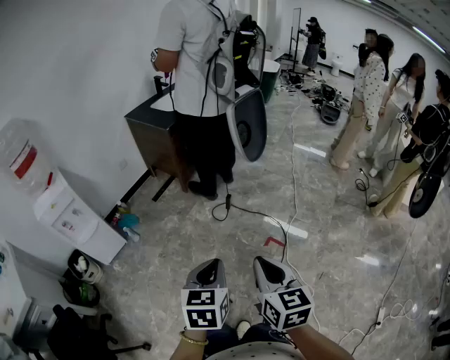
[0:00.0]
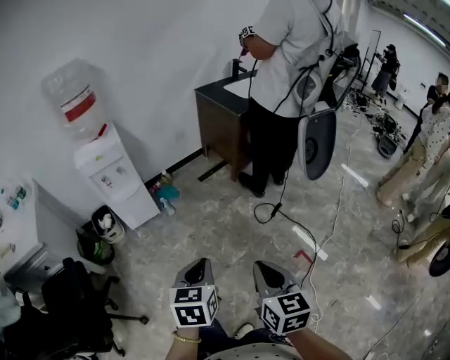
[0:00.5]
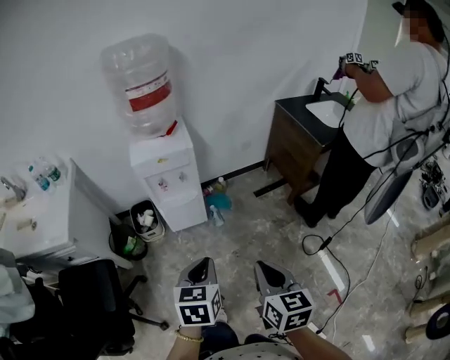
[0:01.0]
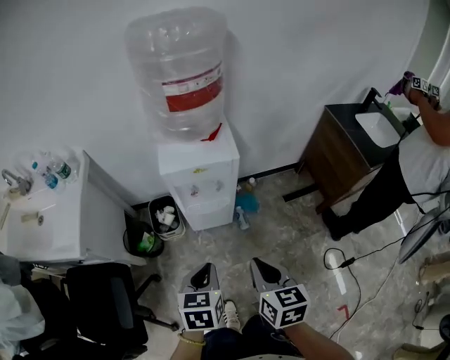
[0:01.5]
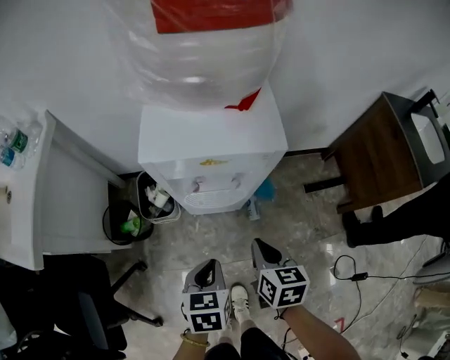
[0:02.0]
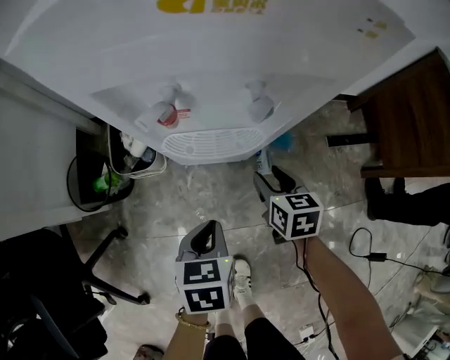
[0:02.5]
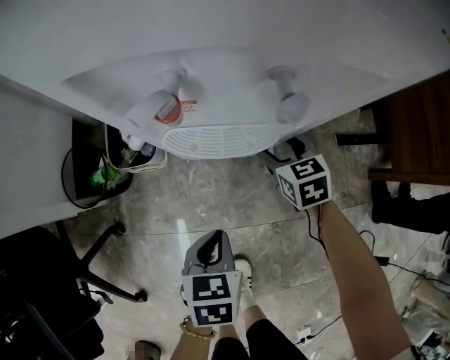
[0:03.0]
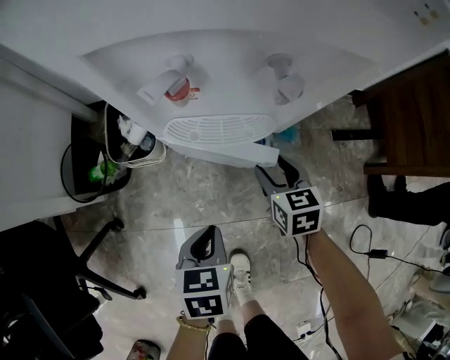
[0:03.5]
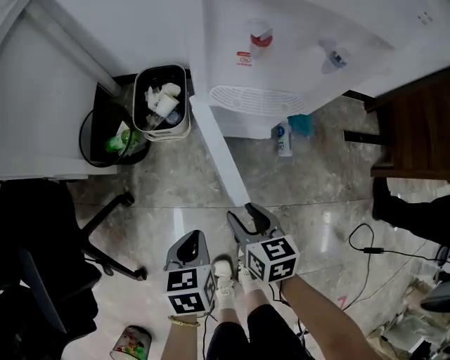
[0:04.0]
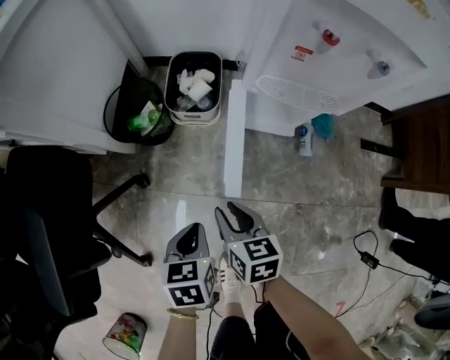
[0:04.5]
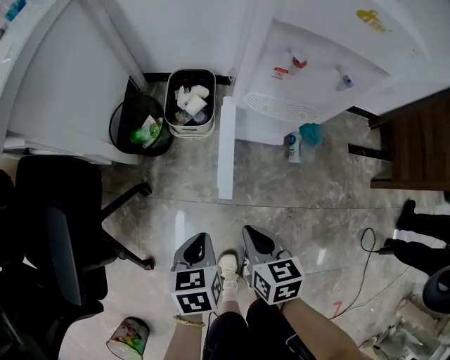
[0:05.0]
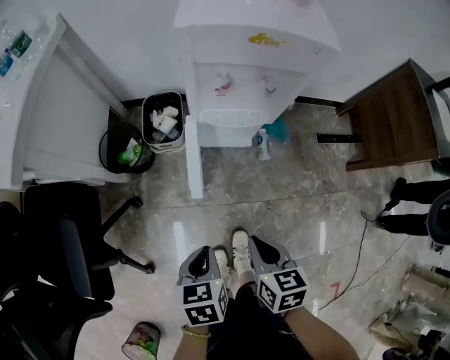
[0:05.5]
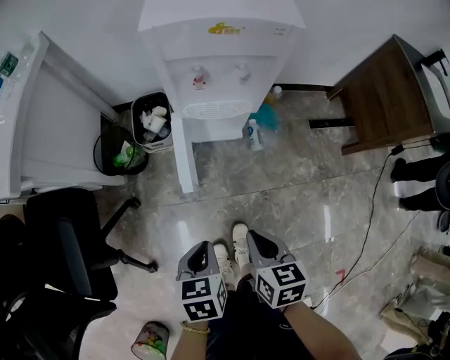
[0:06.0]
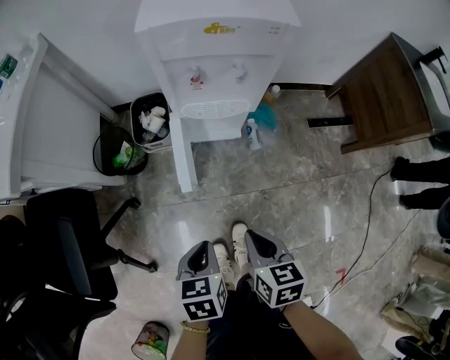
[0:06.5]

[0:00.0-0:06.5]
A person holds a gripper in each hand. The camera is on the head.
0:00.0 to 0:02.0: The pair of grippers is taken some 80 cm. The right gripper rotates about 50 degrees. Meanwhile the left gripper rotates roughly 60 degrees.
0:02.0 to 0:04.5: Both grippers travel together downward, to the left and backward, roughly 35 cm. The right gripper rotates about 20 degrees, and opens.
0:04.5 to 0:06.5: The grippers both shift upward, to the right and backward by roughly 25 cm. The right gripper closes.

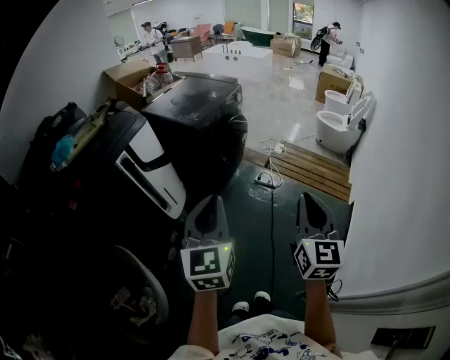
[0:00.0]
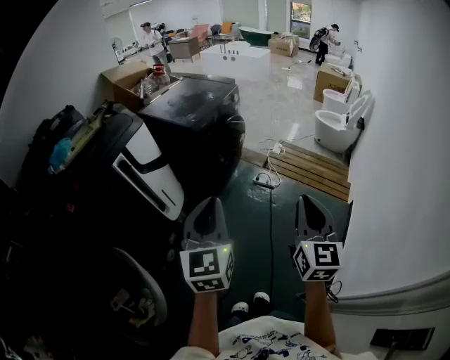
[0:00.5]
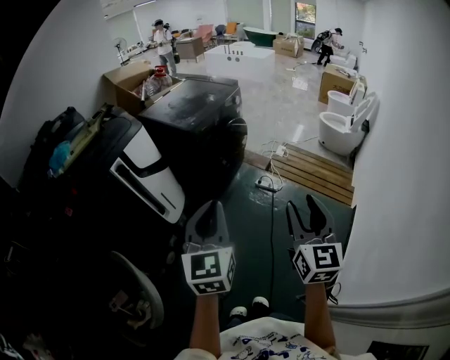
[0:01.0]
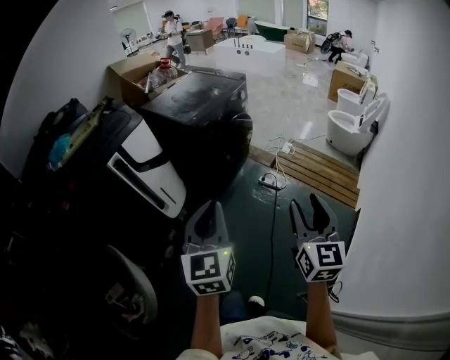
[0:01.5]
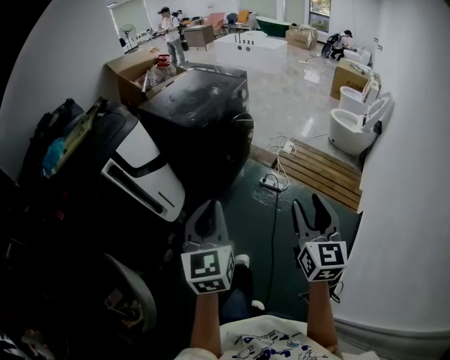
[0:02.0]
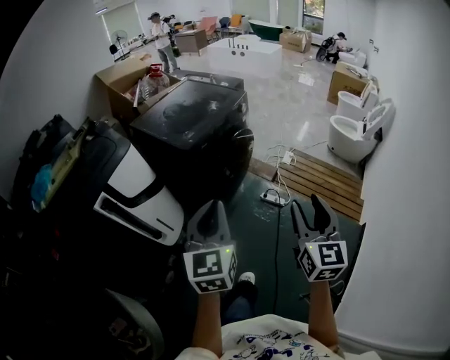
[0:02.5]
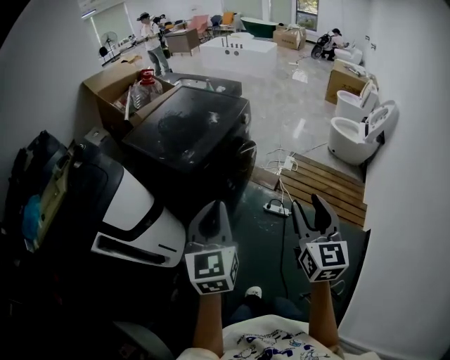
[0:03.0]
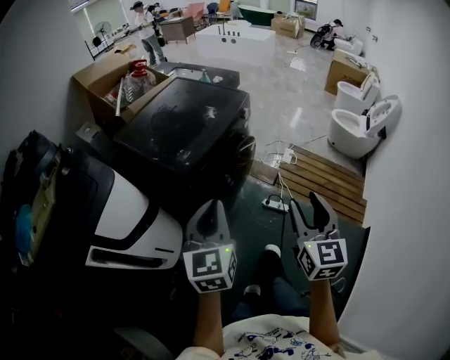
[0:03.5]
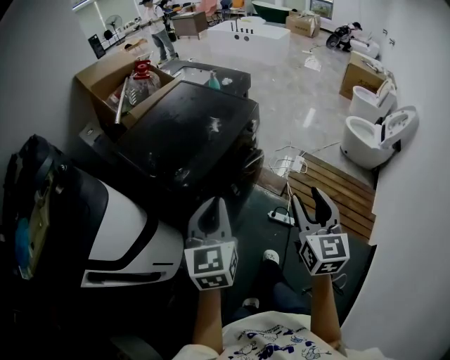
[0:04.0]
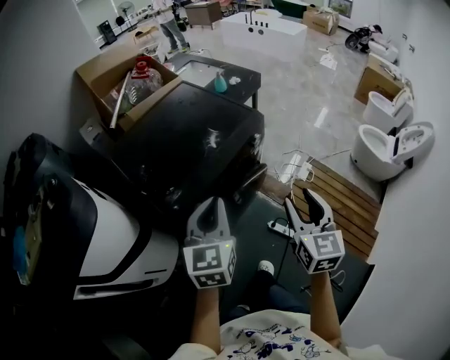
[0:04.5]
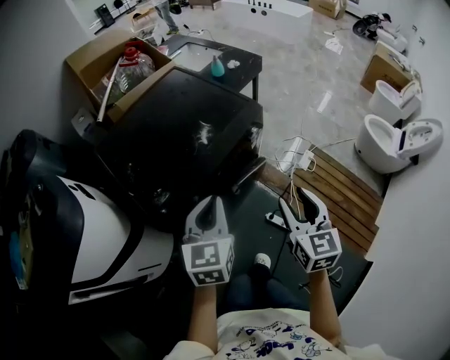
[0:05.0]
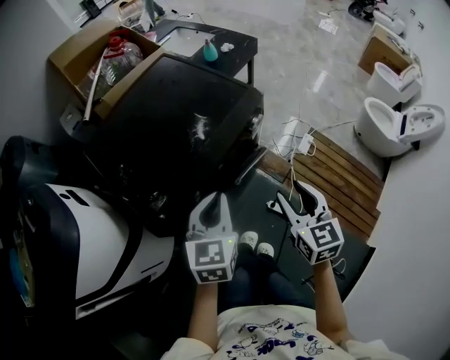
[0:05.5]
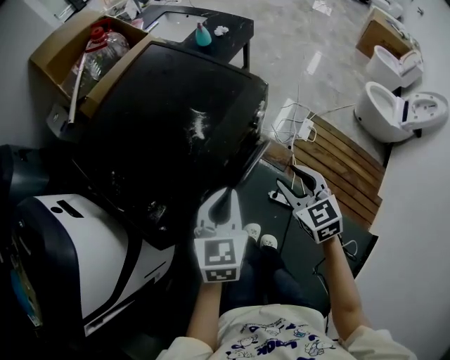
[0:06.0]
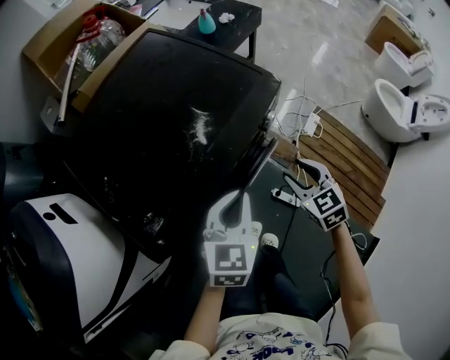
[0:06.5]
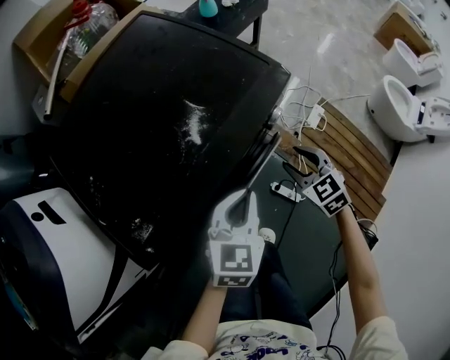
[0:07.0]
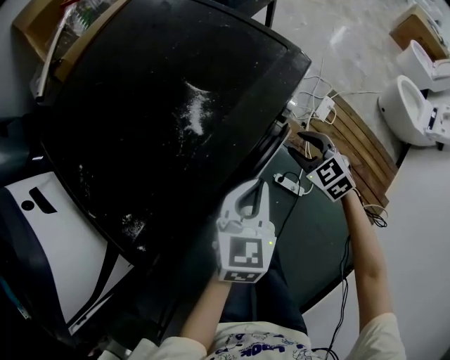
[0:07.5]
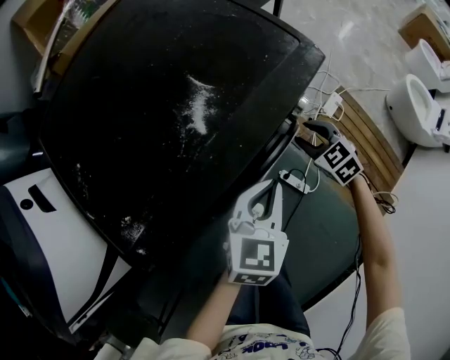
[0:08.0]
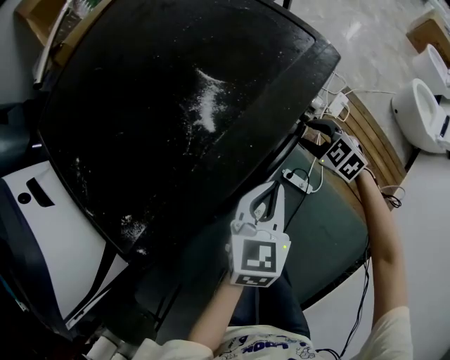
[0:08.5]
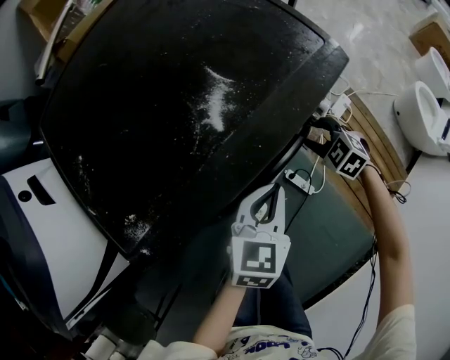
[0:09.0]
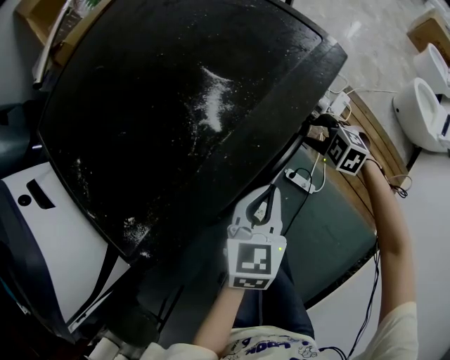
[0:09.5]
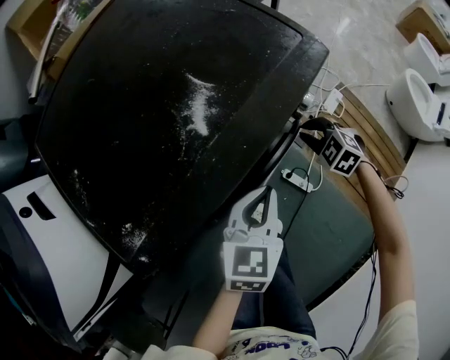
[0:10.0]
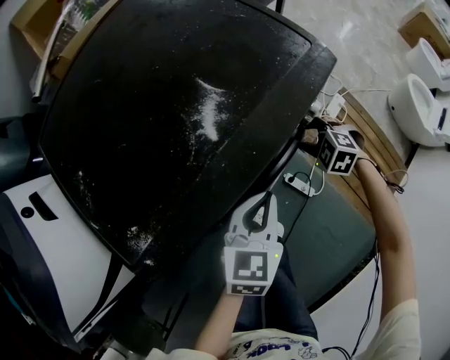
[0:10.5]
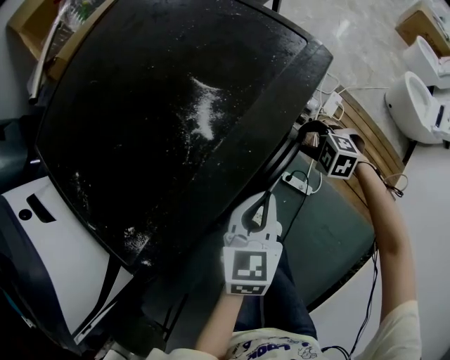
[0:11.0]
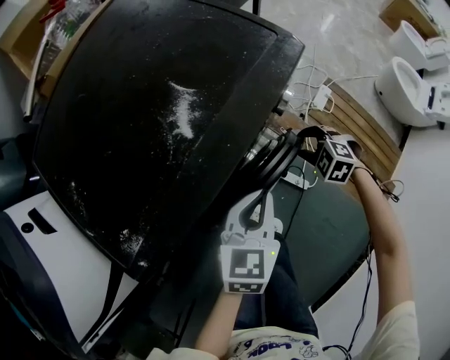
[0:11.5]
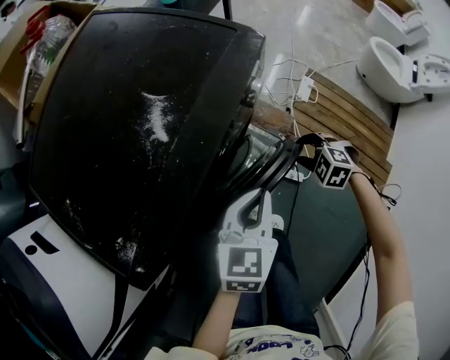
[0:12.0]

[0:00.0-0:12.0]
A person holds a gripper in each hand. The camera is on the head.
0:00.0 to 0:02.0: The right gripper heads forward and to the right, covering roughly 15 cm, and opens its fingers. Meanwhile the left gripper moves forward, approximately 10 cm.
0:02.0 to 0:04.0: The pair of grippers is taken forward, some 50 cm.
0:04.0 to 0:06.0: The two grippers go roughly 30 cm forward and downward. The right gripper rotates some 30 degrees.
0:06.0 to 0:08.0: The right gripper travels downward and forward by roughly 25 cm, and rotates roughly 30 degrees, while the left gripper goes some 15 cm downward and to the right.
0:08.0 to 0:10.0: The right gripper turns by some 20 degrees, and closes.
0:10.0 to 0:12.0: The right gripper goes some 10 cm backward, and opens its fingers.

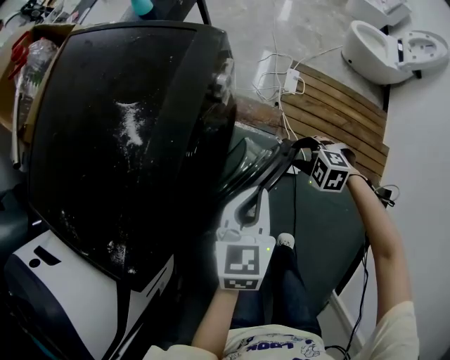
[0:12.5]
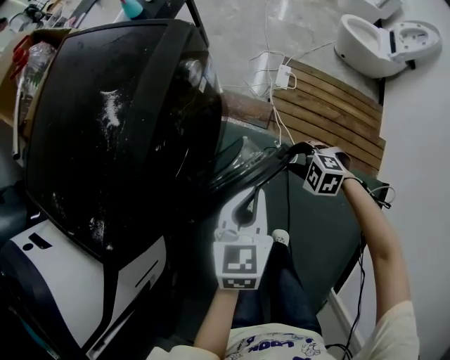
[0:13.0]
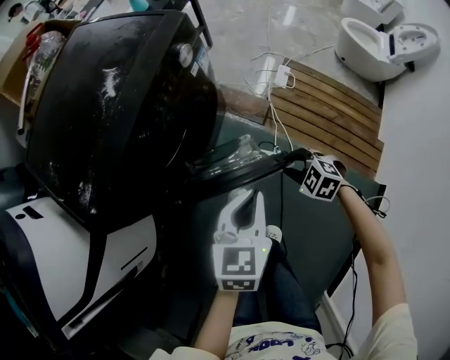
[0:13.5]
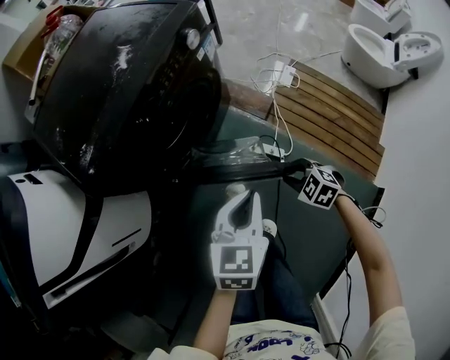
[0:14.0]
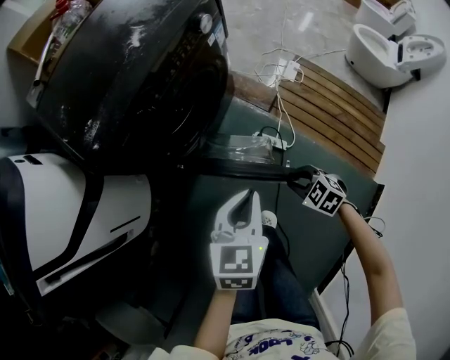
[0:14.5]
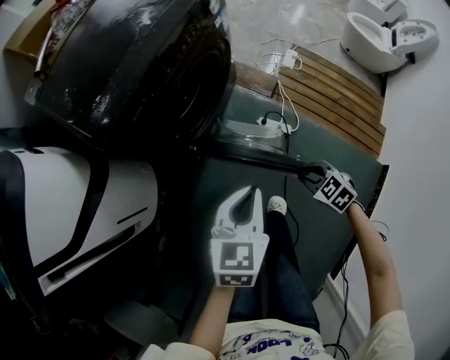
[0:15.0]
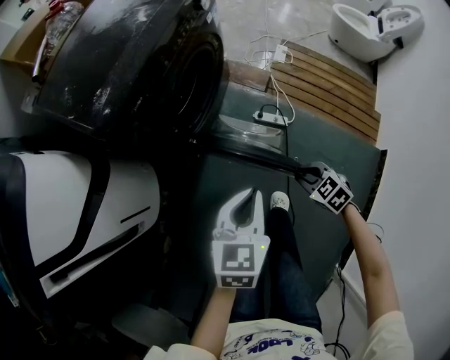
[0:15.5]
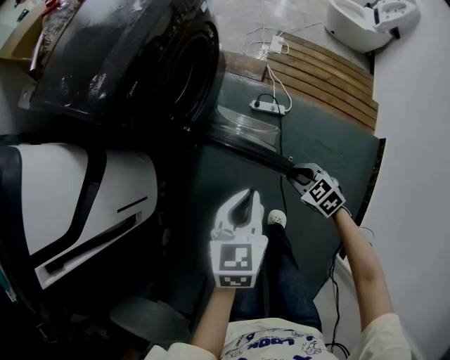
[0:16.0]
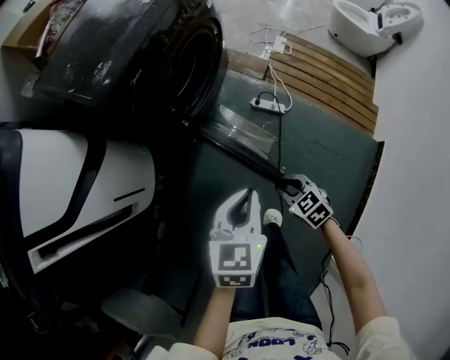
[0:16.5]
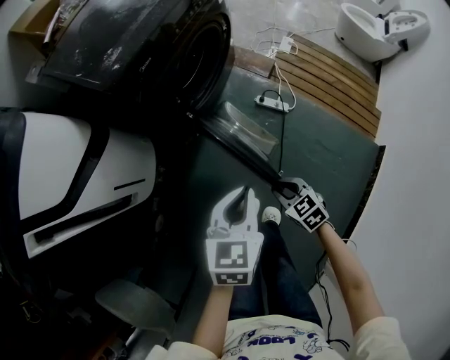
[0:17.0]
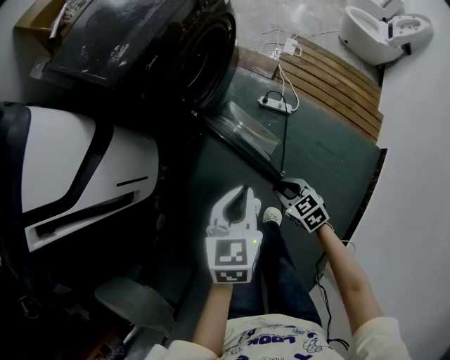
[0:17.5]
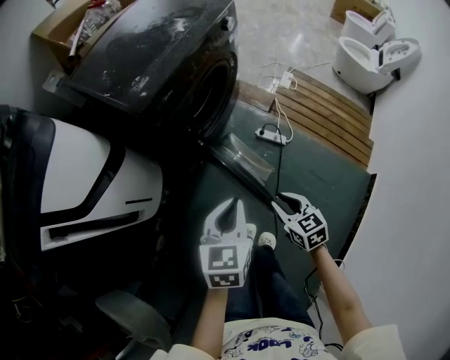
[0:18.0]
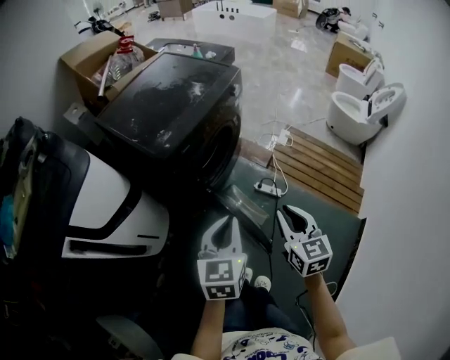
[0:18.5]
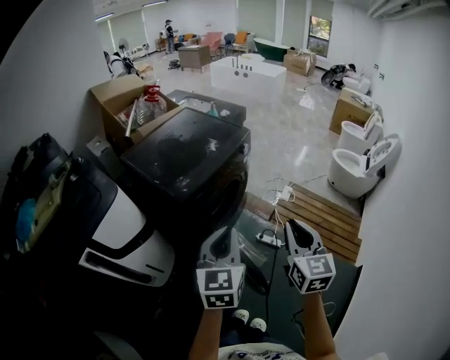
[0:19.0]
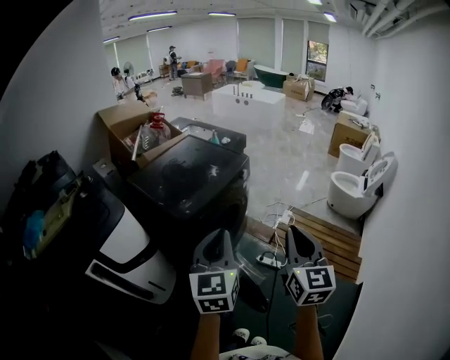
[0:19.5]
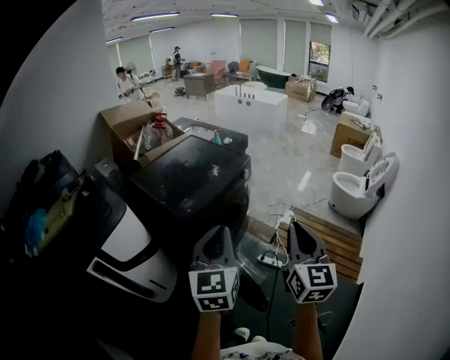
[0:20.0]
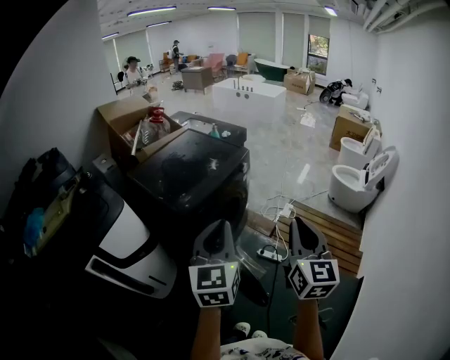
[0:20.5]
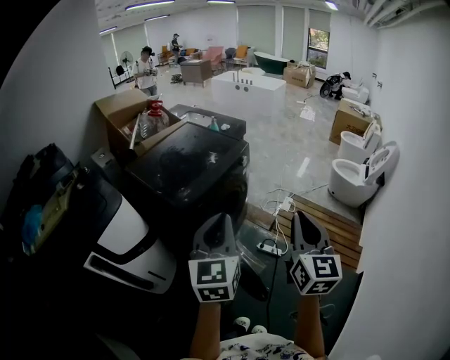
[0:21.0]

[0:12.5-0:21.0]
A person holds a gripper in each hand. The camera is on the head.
0:12.5 to 0:14.5: Both grippers move backward, about 25 cm.
0:14.5 to 0:16.5: Both grippers travel together backward and to the left, roughly 20 cm. The right gripper turns by approximately 20 degrees.
0:16.5 to 0:19.0: The left gripper moves upward, roughly 30 cm, and rotates some 30 degrees. The right gripper heads upward, covering some 50 cm, and points its fingers roughly 40 degrees further upward.
0:19.0 to 0:21.0: The two grippers go approximately 10 cm upward.
